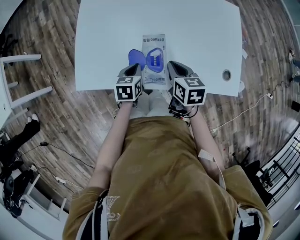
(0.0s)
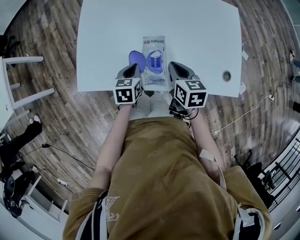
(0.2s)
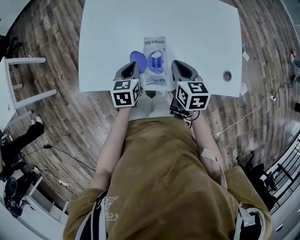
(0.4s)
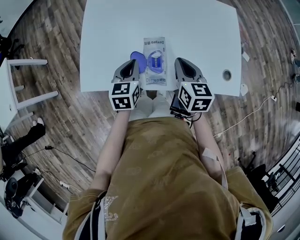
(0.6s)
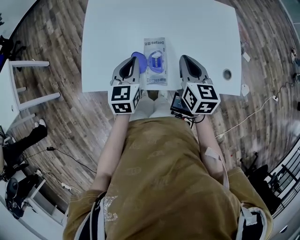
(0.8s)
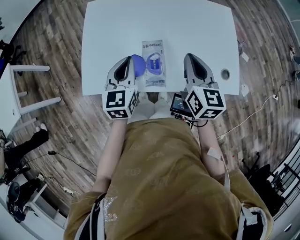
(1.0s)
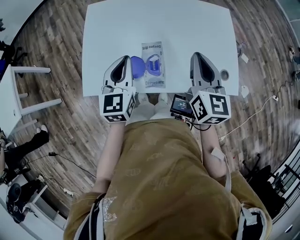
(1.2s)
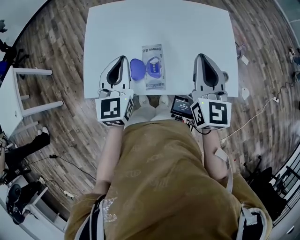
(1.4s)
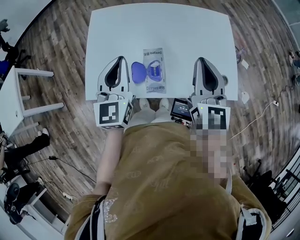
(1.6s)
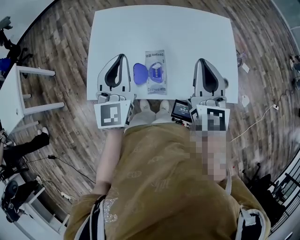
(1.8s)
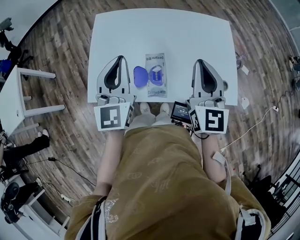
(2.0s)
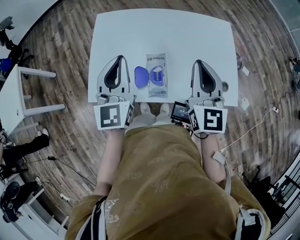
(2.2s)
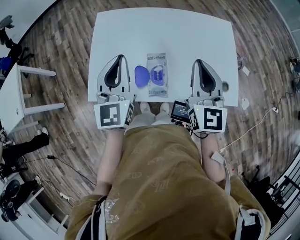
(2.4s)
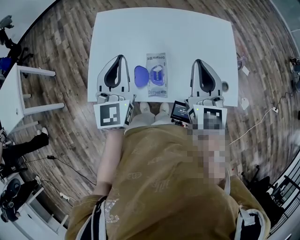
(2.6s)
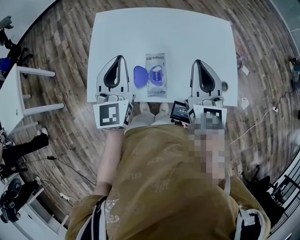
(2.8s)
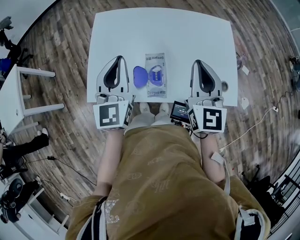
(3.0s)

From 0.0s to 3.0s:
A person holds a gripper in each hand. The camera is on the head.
From 0.0s to 1.6s: The two grippers go about 25 cm upward. The left gripper angles its fingers upward, by roughly 40 degrees, while the right gripper tilts its fingers about 40 degrees upward.
From 1.6s to 3.0s: There are only small adjustments of the grippers.

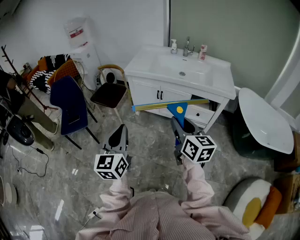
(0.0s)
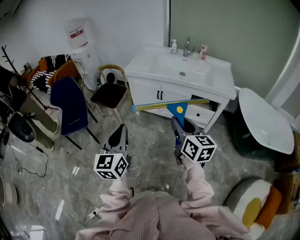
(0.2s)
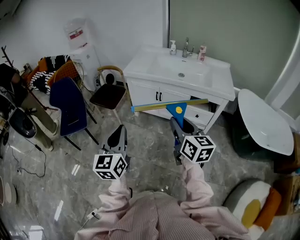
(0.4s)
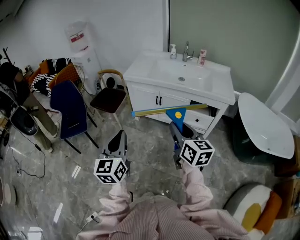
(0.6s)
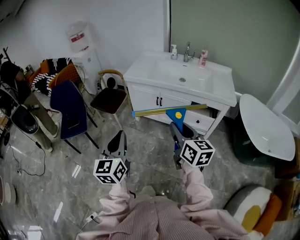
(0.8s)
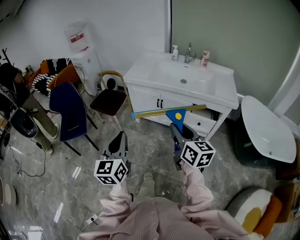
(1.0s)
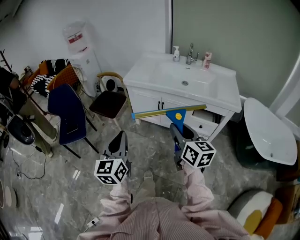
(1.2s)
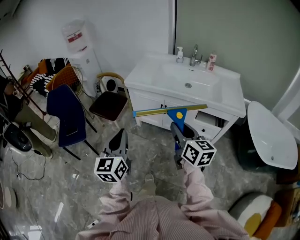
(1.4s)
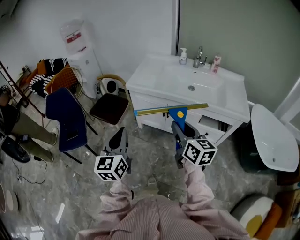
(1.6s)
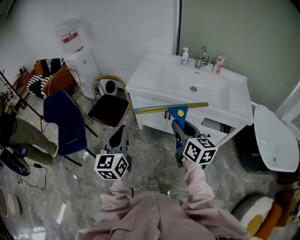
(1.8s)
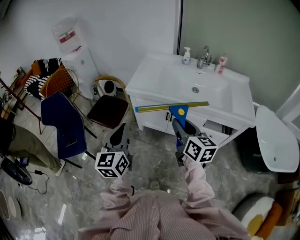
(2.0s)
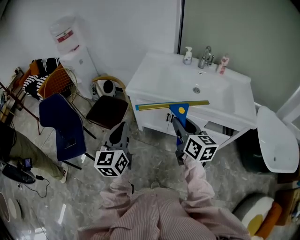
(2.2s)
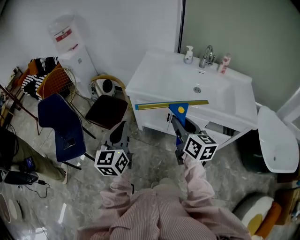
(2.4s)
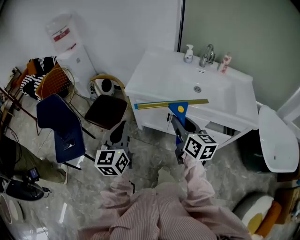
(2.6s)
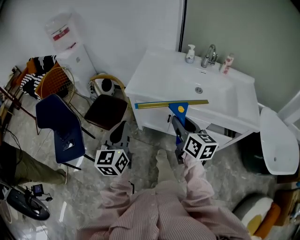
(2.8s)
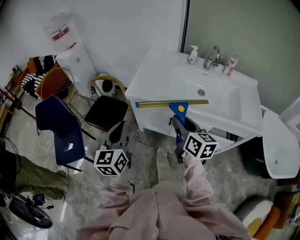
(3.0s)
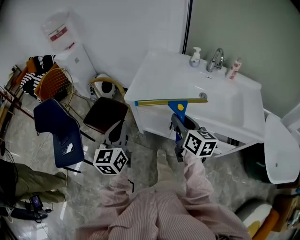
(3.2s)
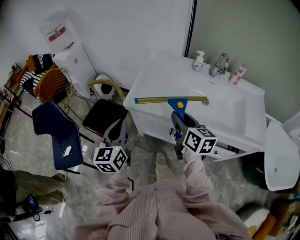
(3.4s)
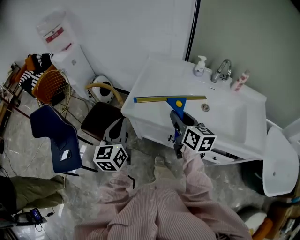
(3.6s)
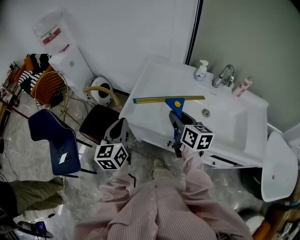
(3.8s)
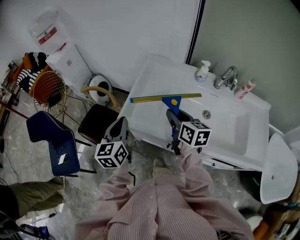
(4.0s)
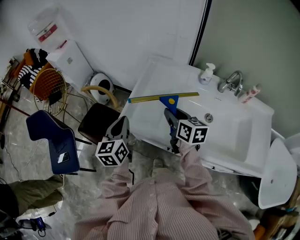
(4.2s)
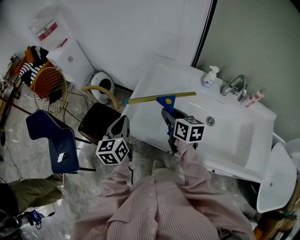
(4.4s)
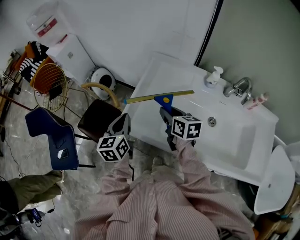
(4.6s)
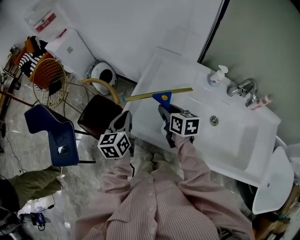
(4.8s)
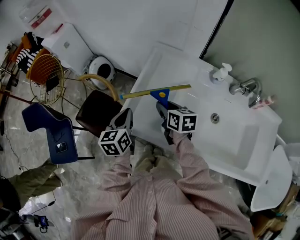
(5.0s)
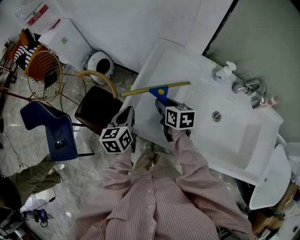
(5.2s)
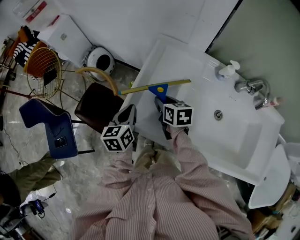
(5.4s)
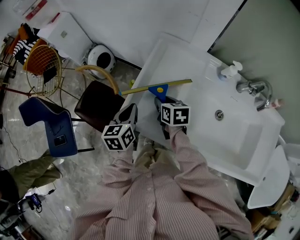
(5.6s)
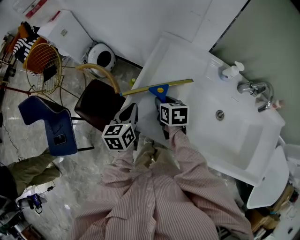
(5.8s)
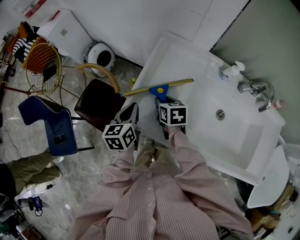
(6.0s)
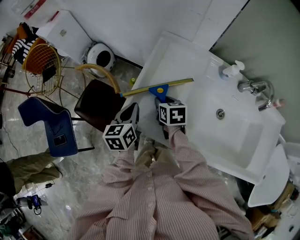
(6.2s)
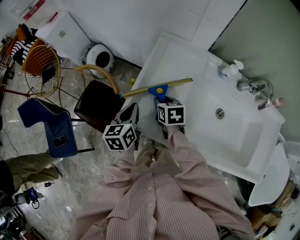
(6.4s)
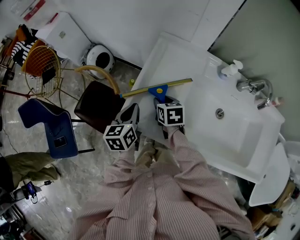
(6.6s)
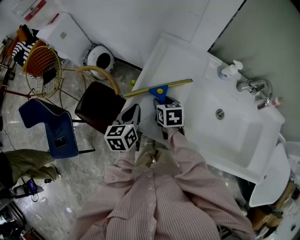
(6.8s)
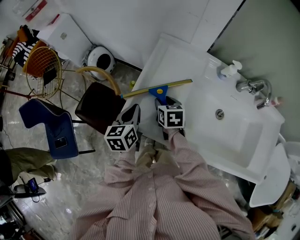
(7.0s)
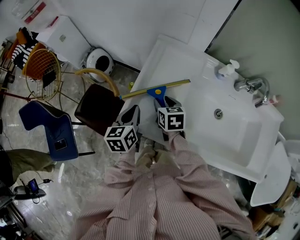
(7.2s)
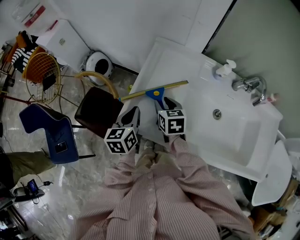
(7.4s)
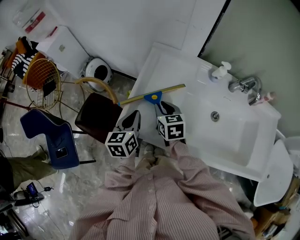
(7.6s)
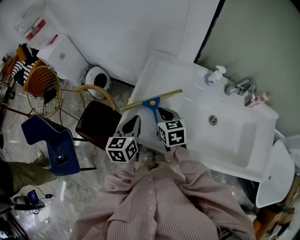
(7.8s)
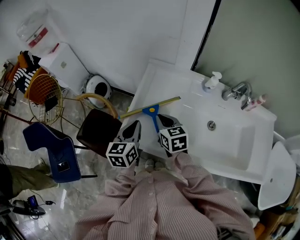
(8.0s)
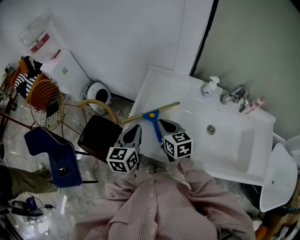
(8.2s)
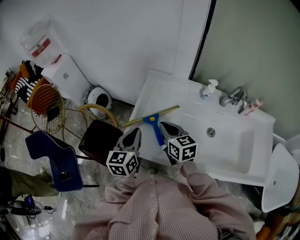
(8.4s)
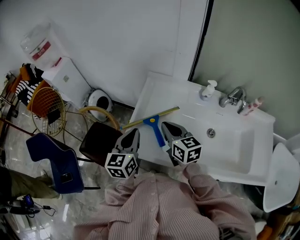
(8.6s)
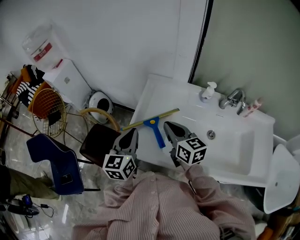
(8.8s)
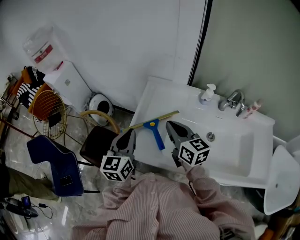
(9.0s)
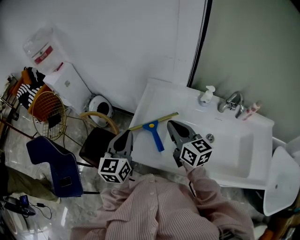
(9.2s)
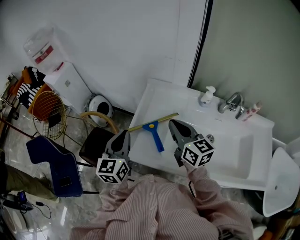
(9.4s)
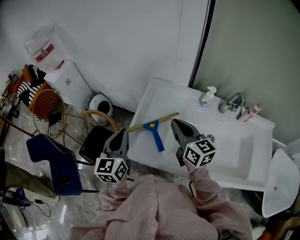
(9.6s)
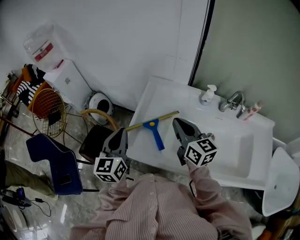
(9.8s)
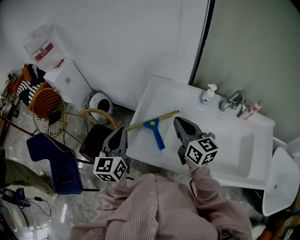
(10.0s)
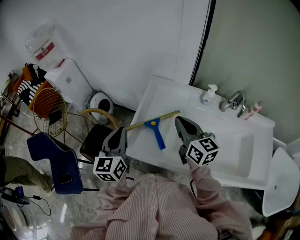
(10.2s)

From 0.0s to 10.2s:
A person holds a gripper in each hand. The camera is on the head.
From 0.0s to 1.4s: The two grippers go approximately 15 cm forward.
From 1.4s to 3.0s: The grippers both shift forward by about 30 cm.
From 3.0s to 4.4s: The grippers both shift forward by about 30 cm.
From 4.4s to 5.8s: The two grippers go some 15 cm downward and forward. The right gripper swivels approximately 20 degrees.
From 5.8s to 7.2s: The grippers make only small movements.
From 7.2s to 8.8s: Both grippers travel together upward, about 15 cm. The left gripper rotates approximately 20 degrees; the right gripper changes its angle by some 30 degrees, and closes up.
From 8.8s to 10.2s: The left gripper shifts by roughly 5 cm. The right gripper shifts by approximately 5 cm.

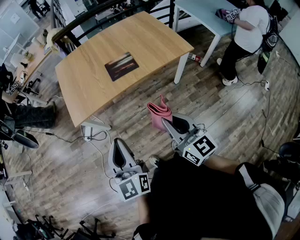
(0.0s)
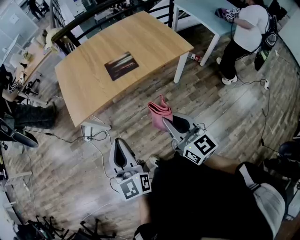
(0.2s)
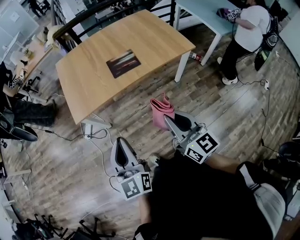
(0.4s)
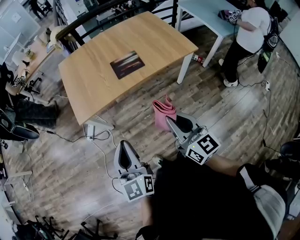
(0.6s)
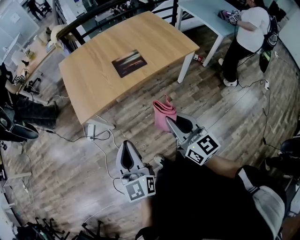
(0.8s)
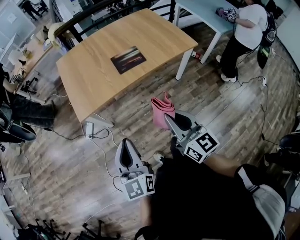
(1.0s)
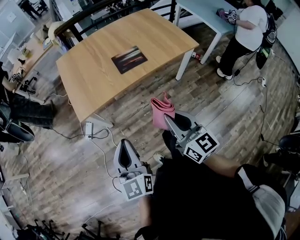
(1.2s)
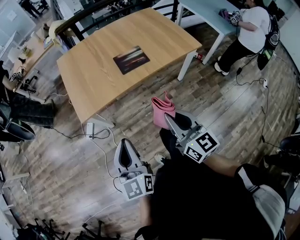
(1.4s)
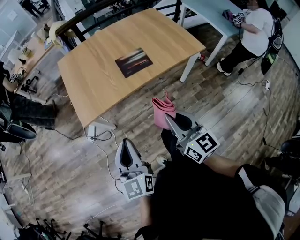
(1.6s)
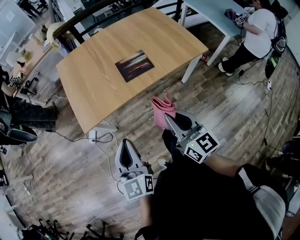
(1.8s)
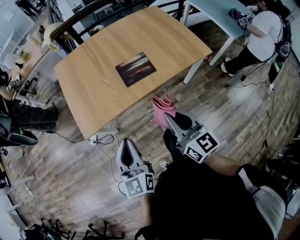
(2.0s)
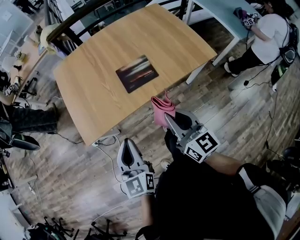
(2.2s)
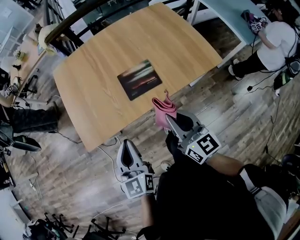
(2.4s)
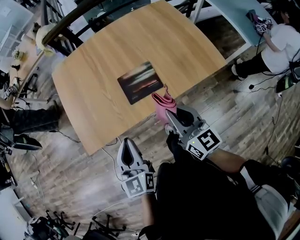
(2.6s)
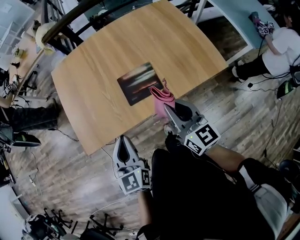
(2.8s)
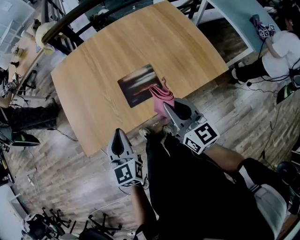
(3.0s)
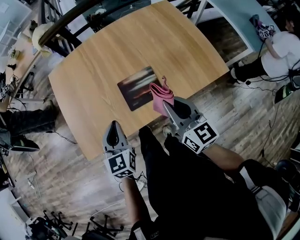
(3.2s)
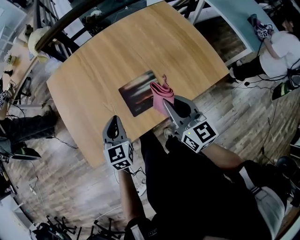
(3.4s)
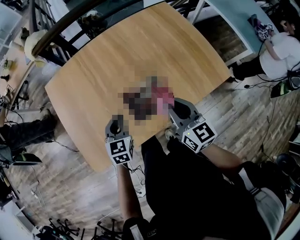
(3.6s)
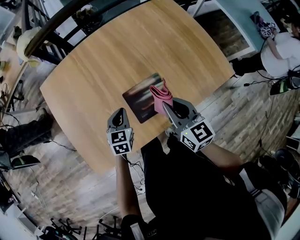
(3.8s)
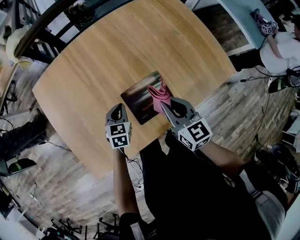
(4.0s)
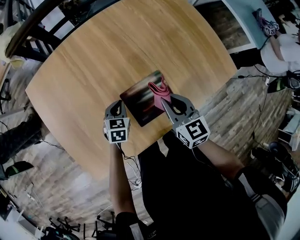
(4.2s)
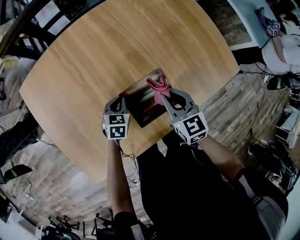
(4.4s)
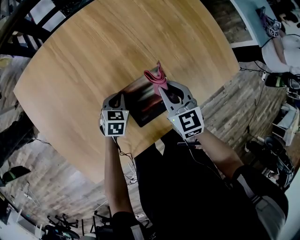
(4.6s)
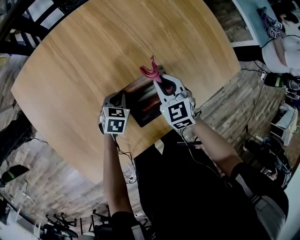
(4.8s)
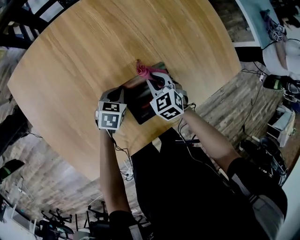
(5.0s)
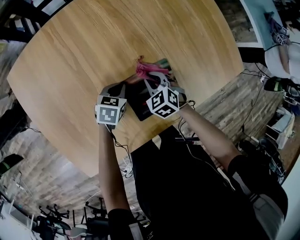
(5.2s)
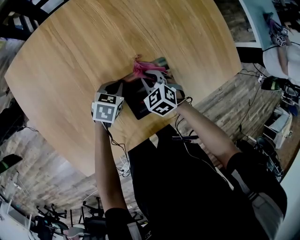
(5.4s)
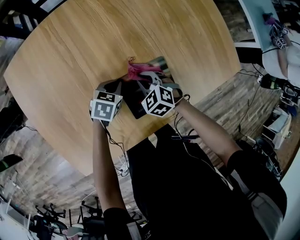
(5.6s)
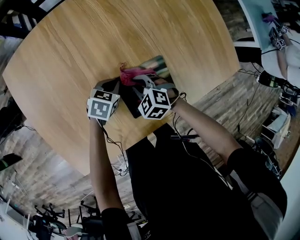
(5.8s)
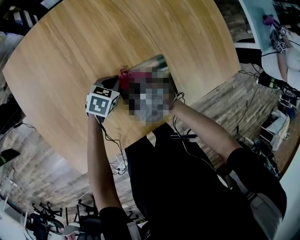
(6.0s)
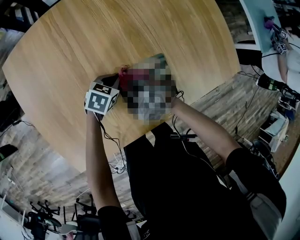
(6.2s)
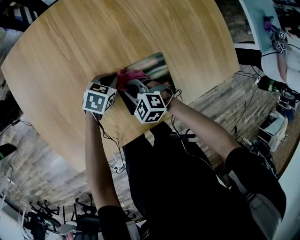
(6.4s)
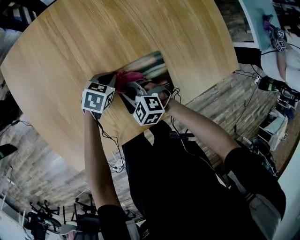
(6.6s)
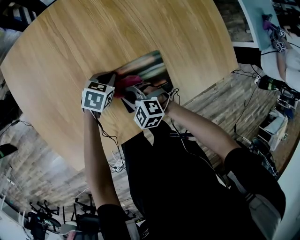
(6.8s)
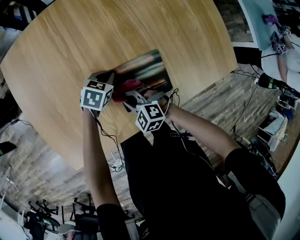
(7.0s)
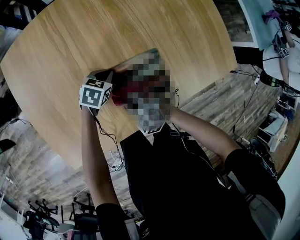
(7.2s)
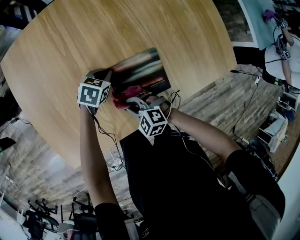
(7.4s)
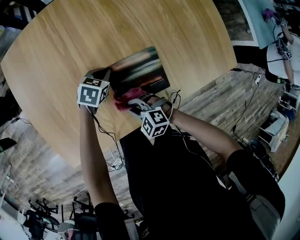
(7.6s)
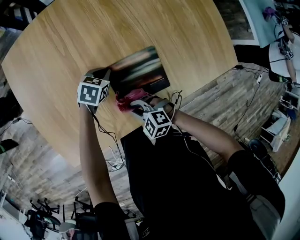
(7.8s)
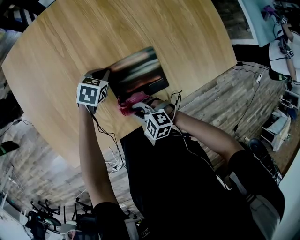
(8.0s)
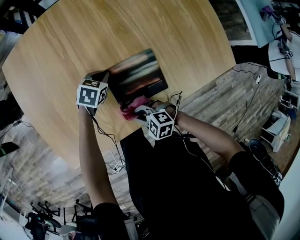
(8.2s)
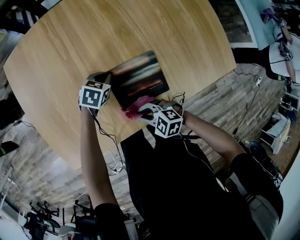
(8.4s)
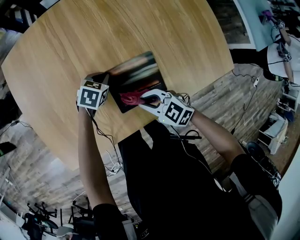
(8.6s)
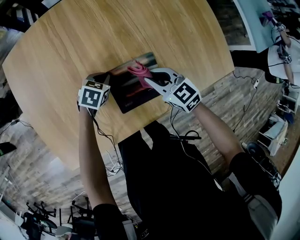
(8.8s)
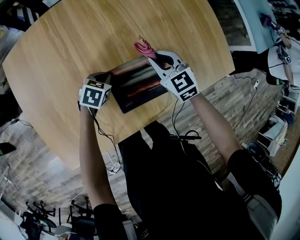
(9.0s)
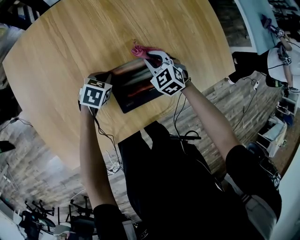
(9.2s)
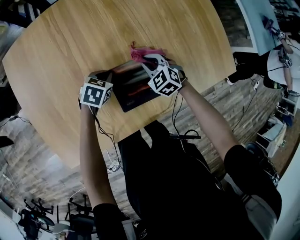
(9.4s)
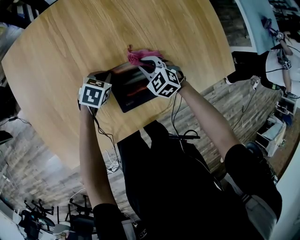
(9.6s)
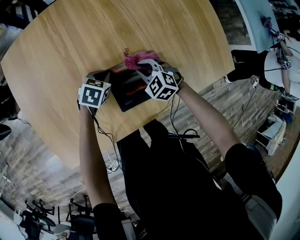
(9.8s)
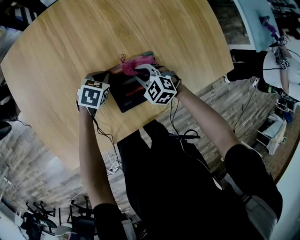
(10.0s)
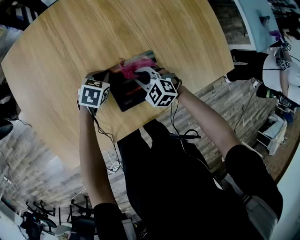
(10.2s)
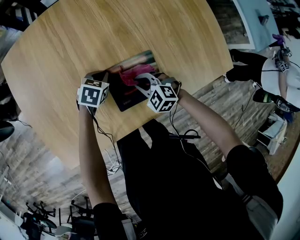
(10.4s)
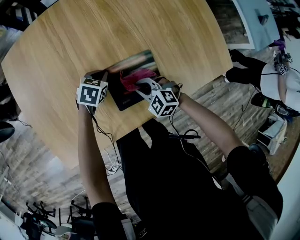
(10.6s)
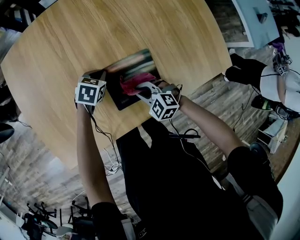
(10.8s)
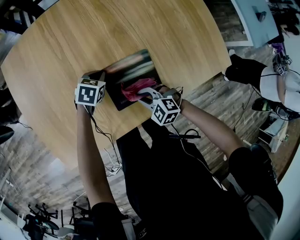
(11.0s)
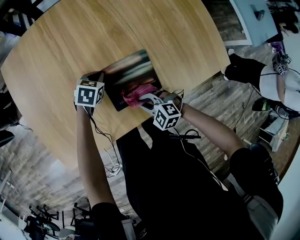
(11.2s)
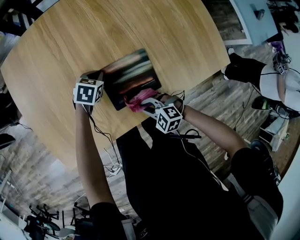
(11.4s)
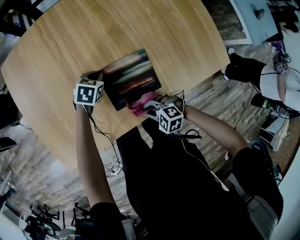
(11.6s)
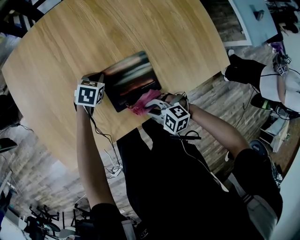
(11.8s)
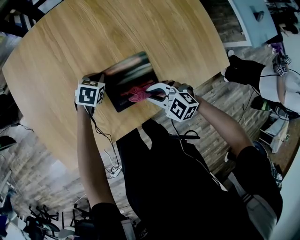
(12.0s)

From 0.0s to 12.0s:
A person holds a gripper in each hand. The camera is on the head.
From 0.0s to 1.6s: The two grippers go some 10 cm to the left and forward.
From 1.6s to 3.0s: The grippers both shift forward by approximately 30 cm.
From 3.0s to 4.4s: The left gripper travels downward and forward by some 40 cm, and tips its fingers downward by some 30 degrees; the right gripper moves downward and forward, approximately 25 cm, and turns by some 30 degrees.
From 4.4s to 6.0s: The right gripper travels downward and to the left by roughly 20 cm, and rotates about 50 degrees.
From 6.0s to 7.6s: The right gripper changes place by roughly 15 cm.
From 7.6s to 9.0s: The right gripper changes place by about 30 cm, and rotates about 40 degrees.
From 9.0s to 10.4s: The right gripper is displaced backward and downward by roughly 15 cm, and swivels some 30 degrees.
From 10.4s to 12.0s: The right gripper goes about 5 cm upward.
